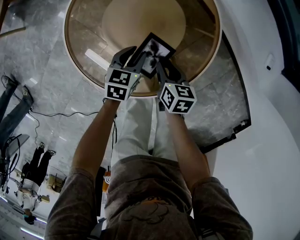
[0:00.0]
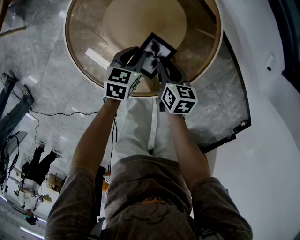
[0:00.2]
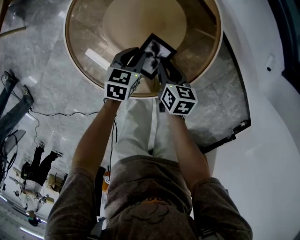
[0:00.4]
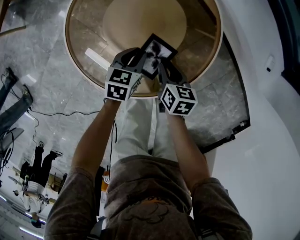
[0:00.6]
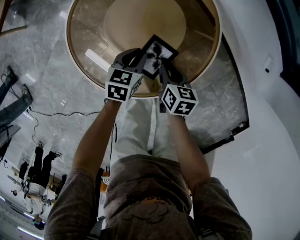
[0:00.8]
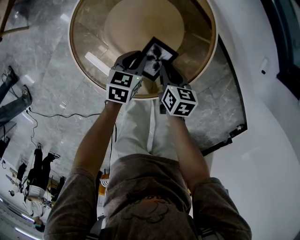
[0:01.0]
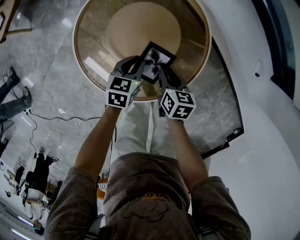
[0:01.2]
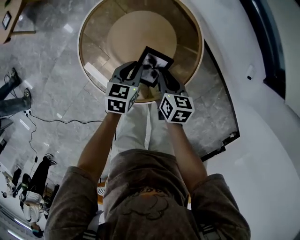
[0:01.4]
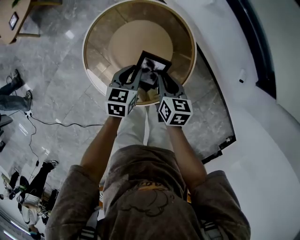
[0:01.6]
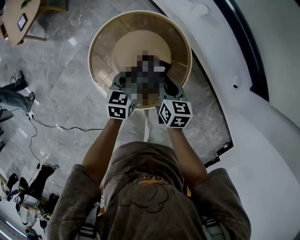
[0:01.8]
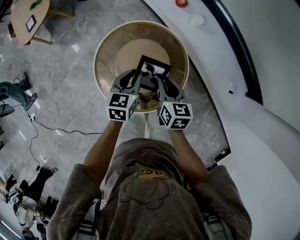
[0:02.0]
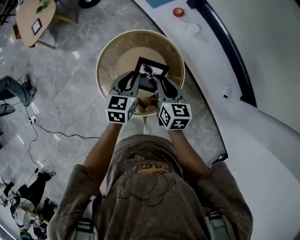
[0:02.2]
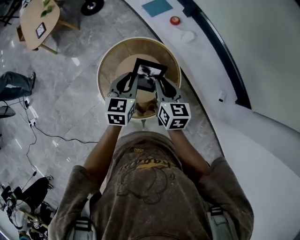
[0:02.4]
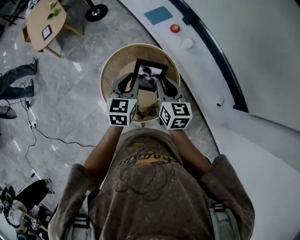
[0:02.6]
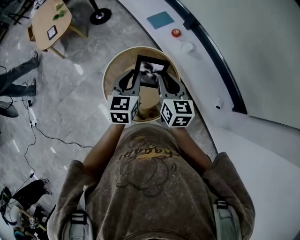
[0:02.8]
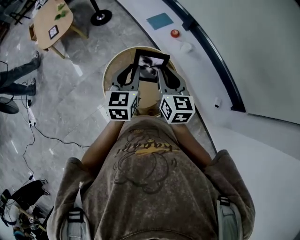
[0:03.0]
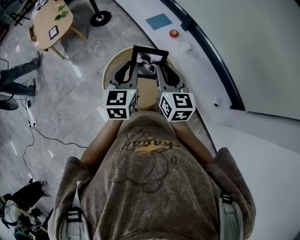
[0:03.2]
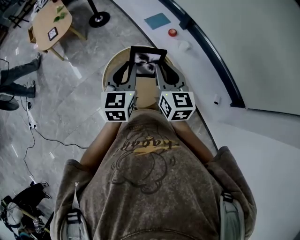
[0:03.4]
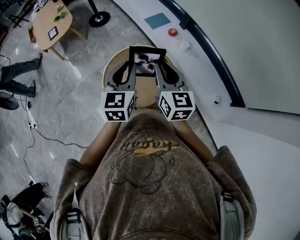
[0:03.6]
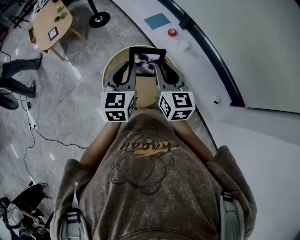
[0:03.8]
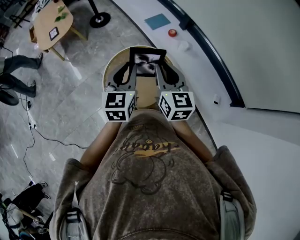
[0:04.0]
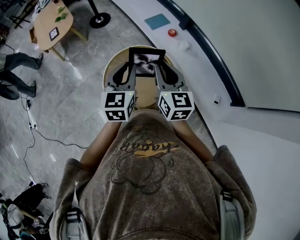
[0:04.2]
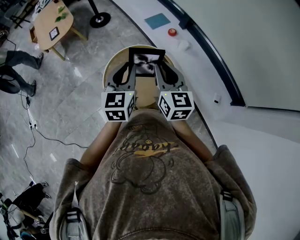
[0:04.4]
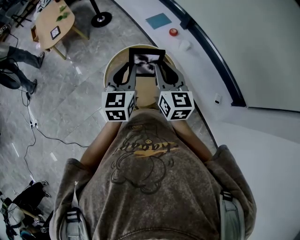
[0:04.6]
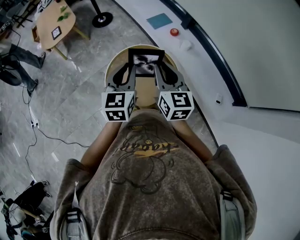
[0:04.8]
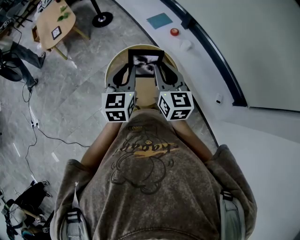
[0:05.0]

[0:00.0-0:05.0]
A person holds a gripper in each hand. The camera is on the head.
0:00.0 to 0:01.6: Both grippers travel together upward, about 15 cm.
0:01.6 to 0:03.4: Both grippers move upward, about 40 cm. The left gripper rotates roughly 30 degrees; the right gripper tips its fingers upward by approximately 30 degrees.
0:03.4 to 0:05.0: The grippers make only small movements.

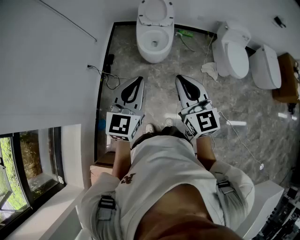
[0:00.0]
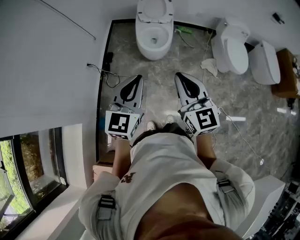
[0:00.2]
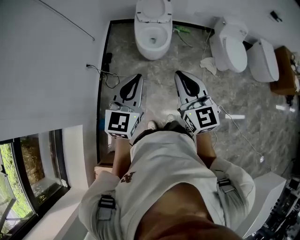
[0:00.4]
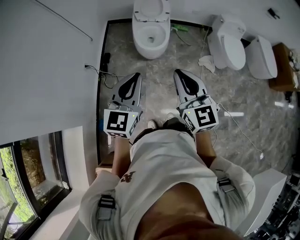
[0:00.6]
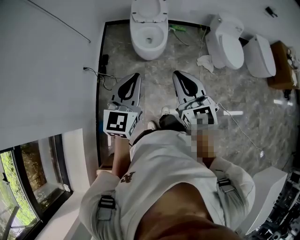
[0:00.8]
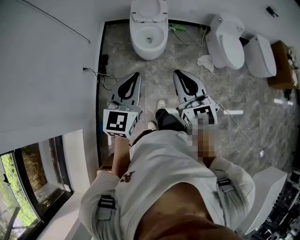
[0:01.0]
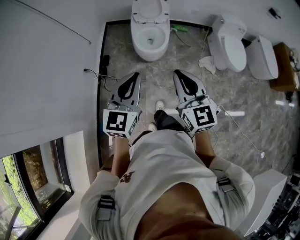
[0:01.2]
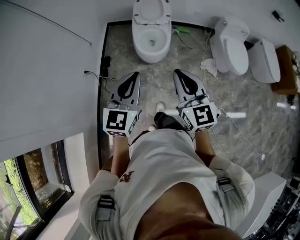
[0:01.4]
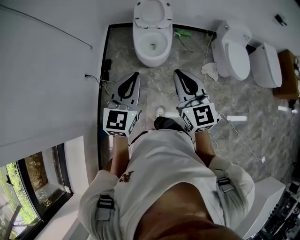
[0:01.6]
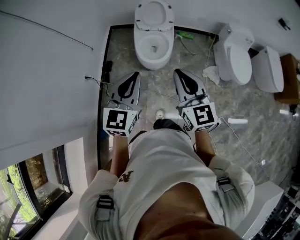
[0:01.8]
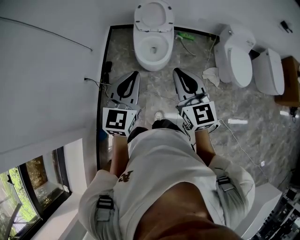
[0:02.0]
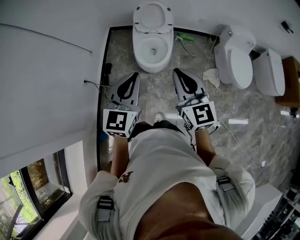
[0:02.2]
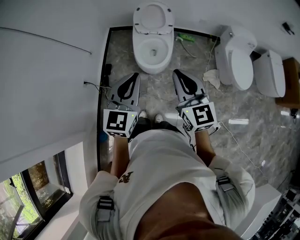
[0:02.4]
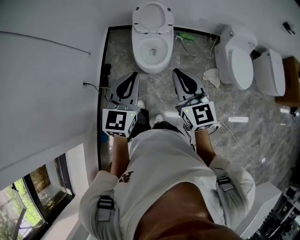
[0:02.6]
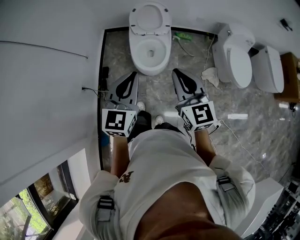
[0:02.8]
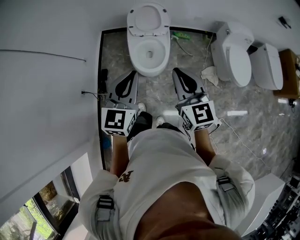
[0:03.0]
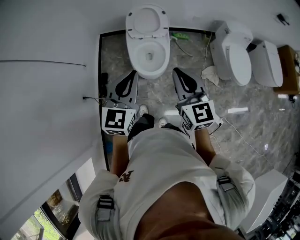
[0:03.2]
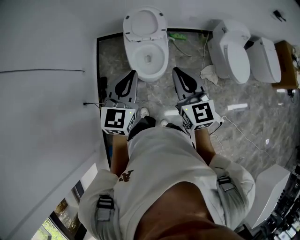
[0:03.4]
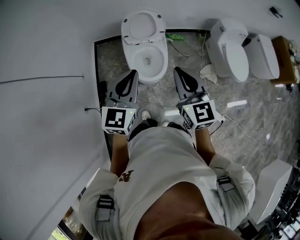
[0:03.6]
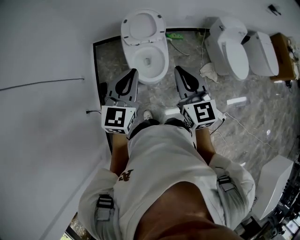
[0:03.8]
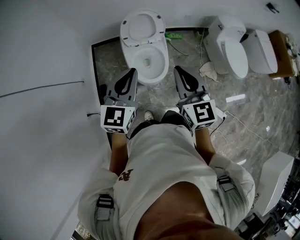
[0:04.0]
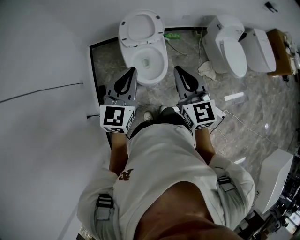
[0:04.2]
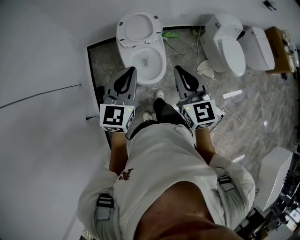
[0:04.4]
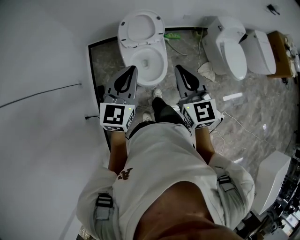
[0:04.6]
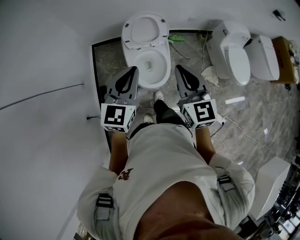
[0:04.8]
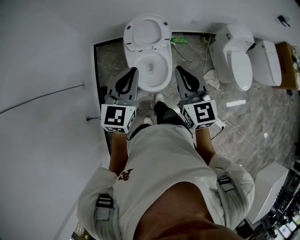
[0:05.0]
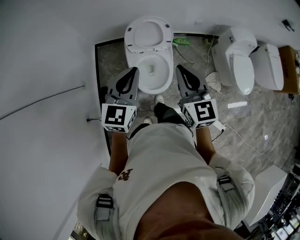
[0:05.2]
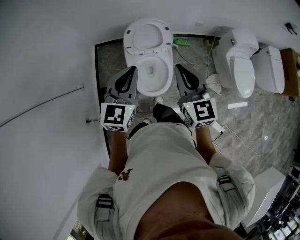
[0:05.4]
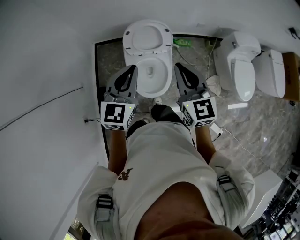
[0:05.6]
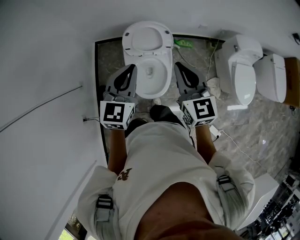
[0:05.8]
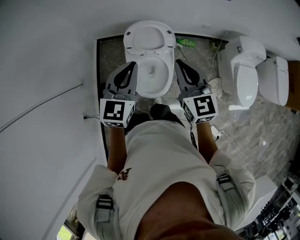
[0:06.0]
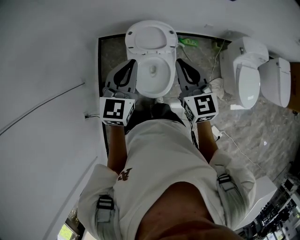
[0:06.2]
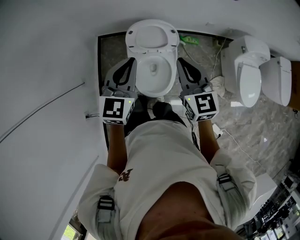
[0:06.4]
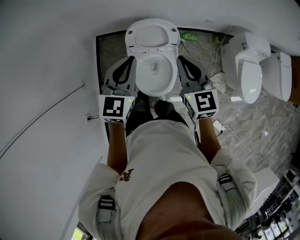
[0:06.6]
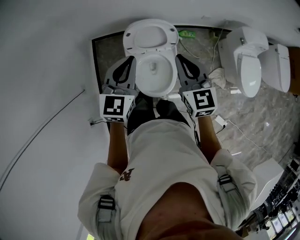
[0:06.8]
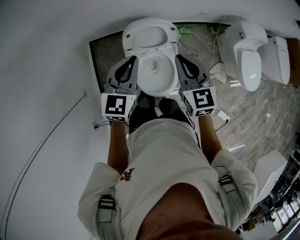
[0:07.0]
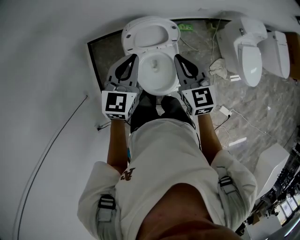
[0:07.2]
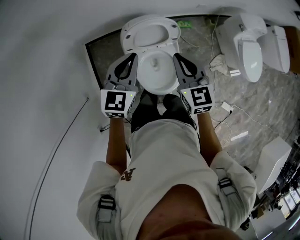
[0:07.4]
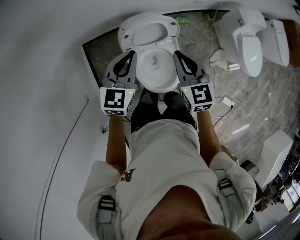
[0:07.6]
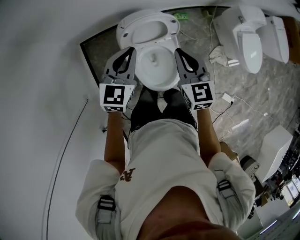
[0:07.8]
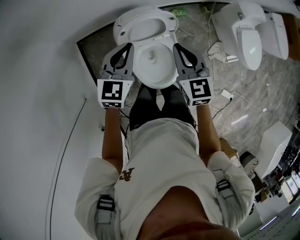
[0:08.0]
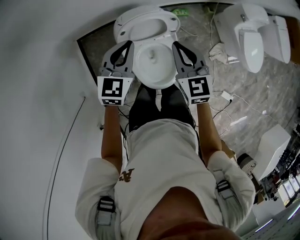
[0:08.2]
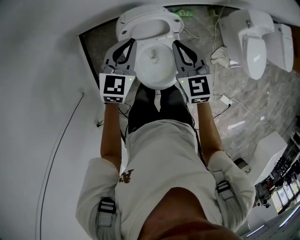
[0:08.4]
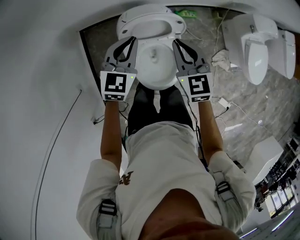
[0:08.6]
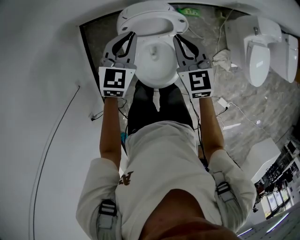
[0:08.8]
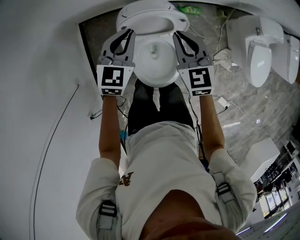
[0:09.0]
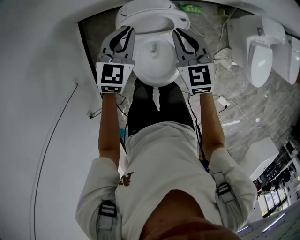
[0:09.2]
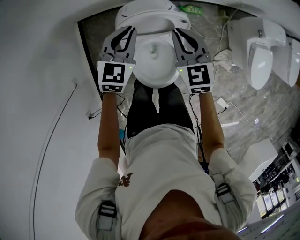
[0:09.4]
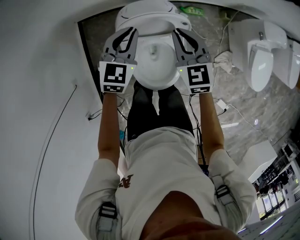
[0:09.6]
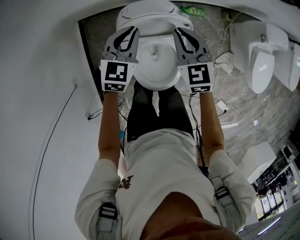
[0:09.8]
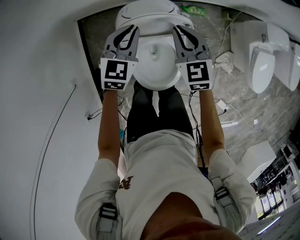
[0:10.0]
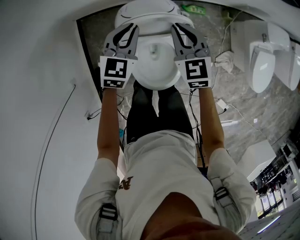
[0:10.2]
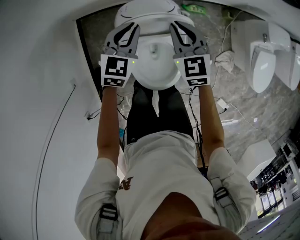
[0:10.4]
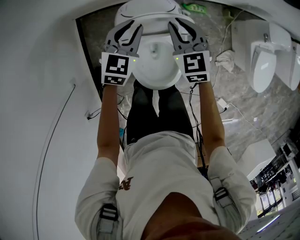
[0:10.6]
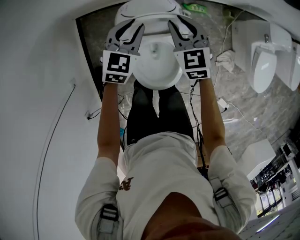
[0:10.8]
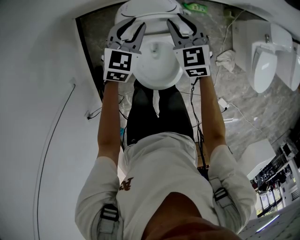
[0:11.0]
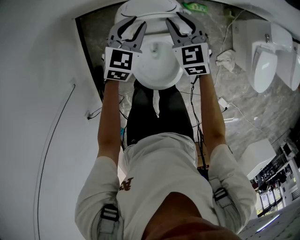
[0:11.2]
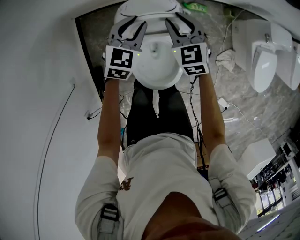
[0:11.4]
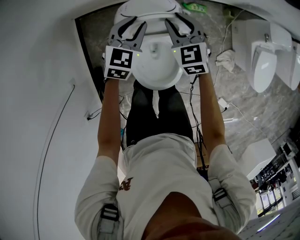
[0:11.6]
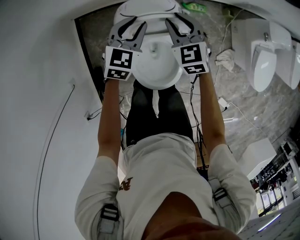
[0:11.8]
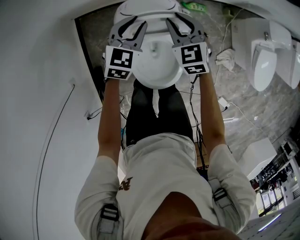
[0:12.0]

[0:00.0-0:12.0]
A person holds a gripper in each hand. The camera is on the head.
0:00.0 to 0:01.6: The grippers both shift forward by roughly 15 cm.
0:01.6 to 0:03.0: The grippers both shift forward by some 20 cm.
0:03.0 to 0:04.4: The two grippers go about 20 cm forward and to the left.
0:04.4 to 0:06.0: Both grippers move forward, about 25 cm.
0:06.0 to 0:07.6: Both grippers travel together forward, downward and to the left, some 20 cm.
0:07.6 to 0:09.0: The grippers both shift forward and downward by some 15 cm.
0:09.0 to 0:10.4: The grippers both shift downward and forward by roughly 10 cm.
0:10.4 to 0:12.0: The right gripper opens up.

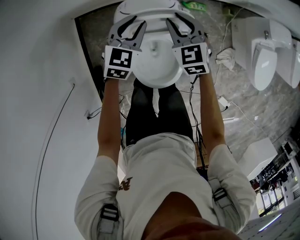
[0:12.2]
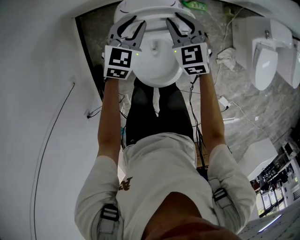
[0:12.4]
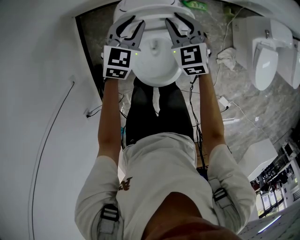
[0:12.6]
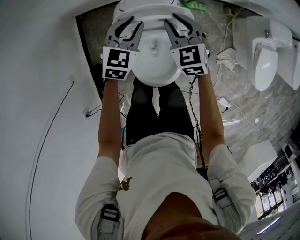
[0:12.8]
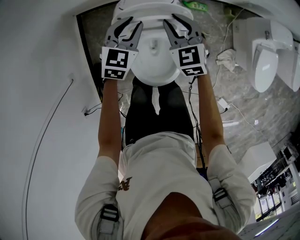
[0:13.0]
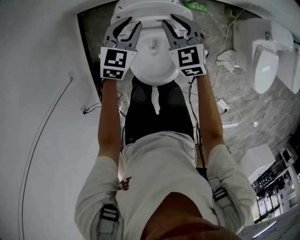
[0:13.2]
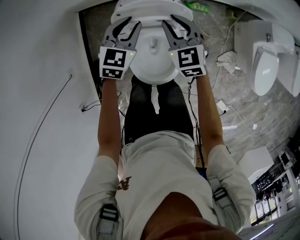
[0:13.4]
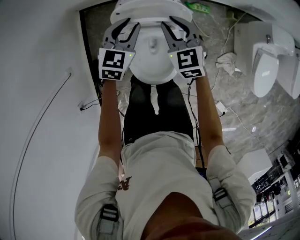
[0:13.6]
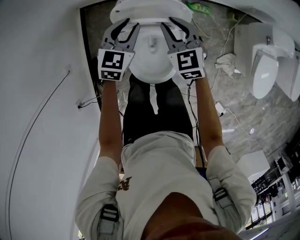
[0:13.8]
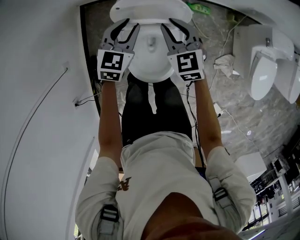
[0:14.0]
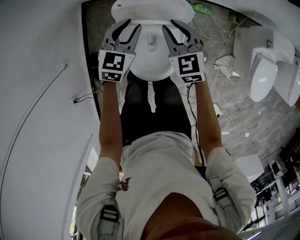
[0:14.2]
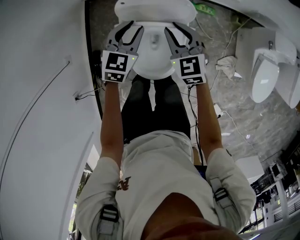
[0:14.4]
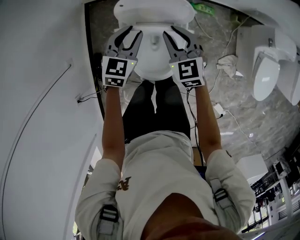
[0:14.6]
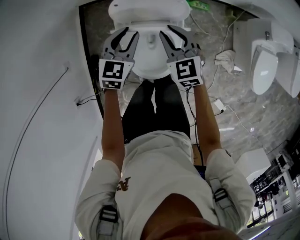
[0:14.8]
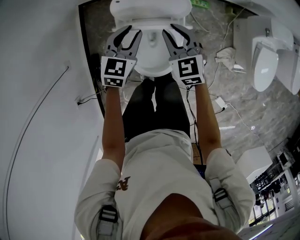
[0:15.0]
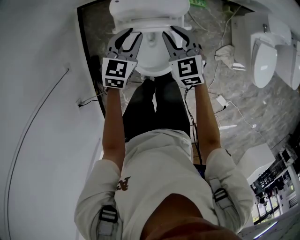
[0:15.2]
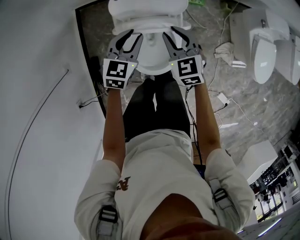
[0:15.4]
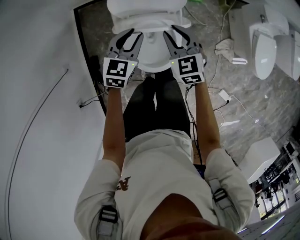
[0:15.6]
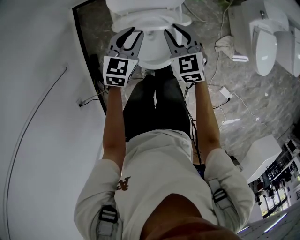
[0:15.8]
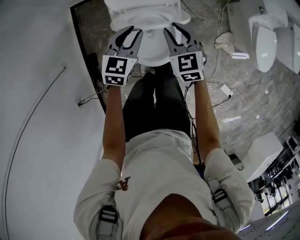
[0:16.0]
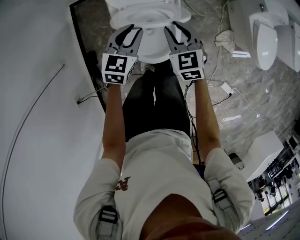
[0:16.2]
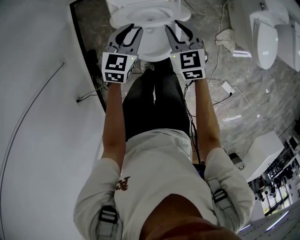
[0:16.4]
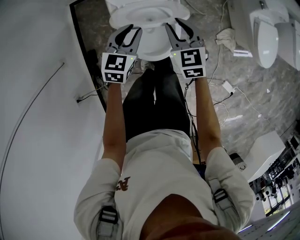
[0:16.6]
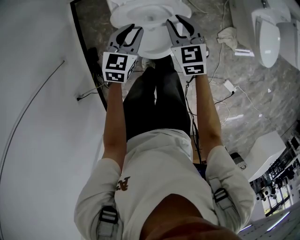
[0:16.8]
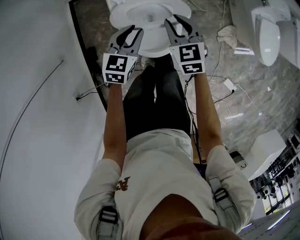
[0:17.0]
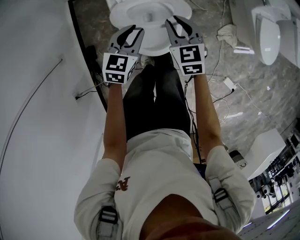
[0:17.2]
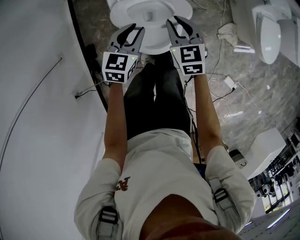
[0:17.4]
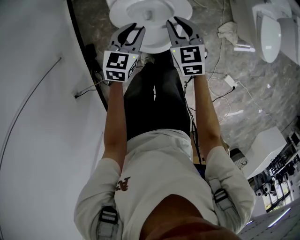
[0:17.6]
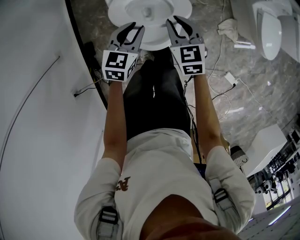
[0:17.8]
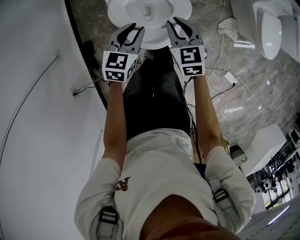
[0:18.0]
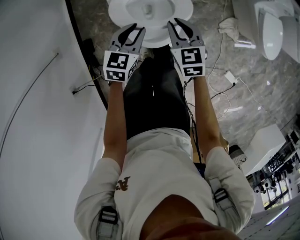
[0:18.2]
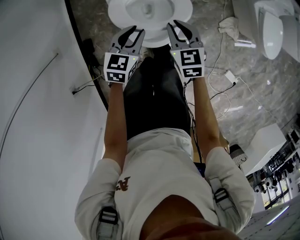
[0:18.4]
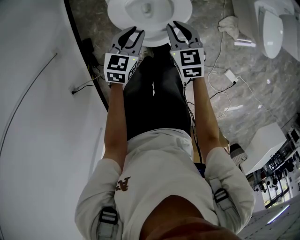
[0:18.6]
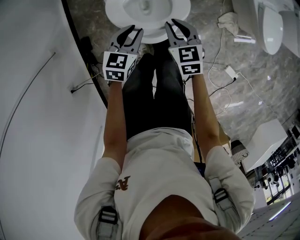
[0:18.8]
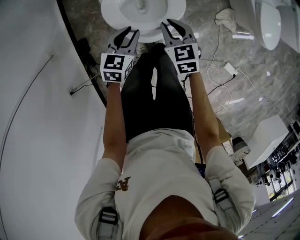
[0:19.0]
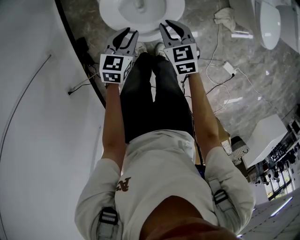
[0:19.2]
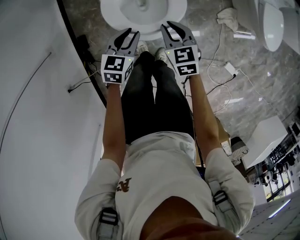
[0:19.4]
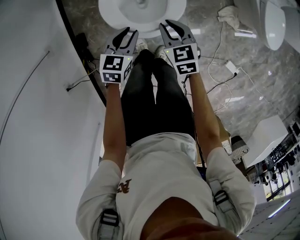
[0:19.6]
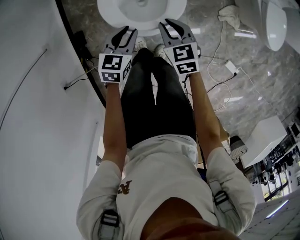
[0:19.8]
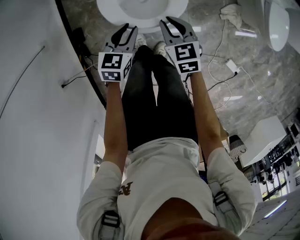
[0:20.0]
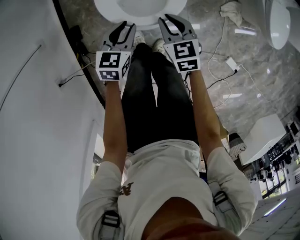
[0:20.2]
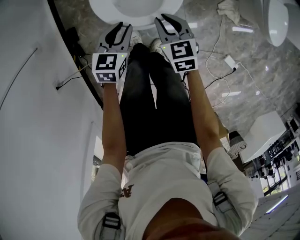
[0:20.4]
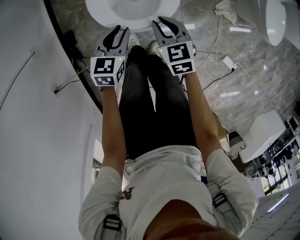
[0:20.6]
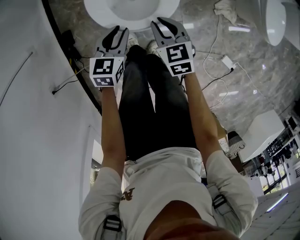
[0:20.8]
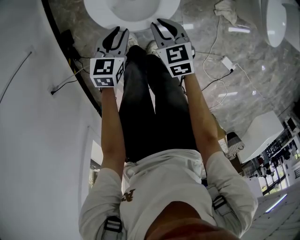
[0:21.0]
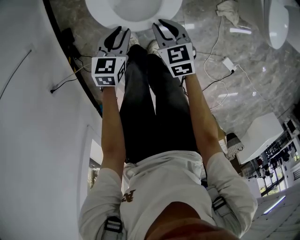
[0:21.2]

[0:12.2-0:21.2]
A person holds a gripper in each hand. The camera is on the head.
0:12.2 to 0:13.8: Both grippers travel together backward, about 5 cm.
0:13.8 to 0:15.2: Both grippers move backward, some 10 cm.
0:15.2 to 0:16.6: Both grippers travel together backward, some 10 cm.
0:16.6 to 0:18.2: The left gripper heads backward, covering roughly 5 cm; the right gripper heads backward and downward, covering roughly 10 cm.
0:18.2 to 0:19.8: Both grippers move downward and backward, roughly 10 cm.
0:19.8 to 0:21.2: The two grippers go some 5 cm downward.